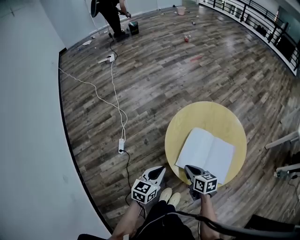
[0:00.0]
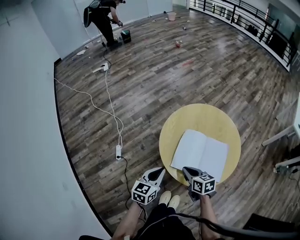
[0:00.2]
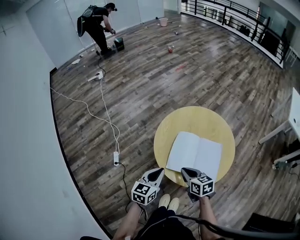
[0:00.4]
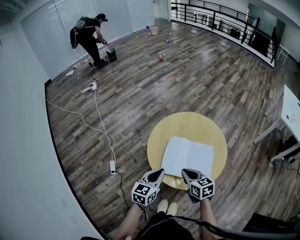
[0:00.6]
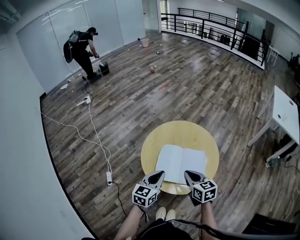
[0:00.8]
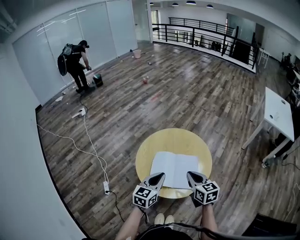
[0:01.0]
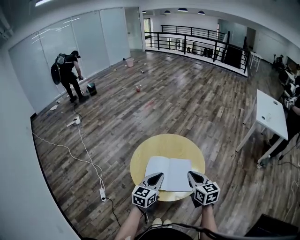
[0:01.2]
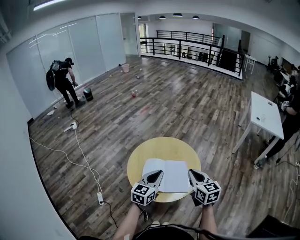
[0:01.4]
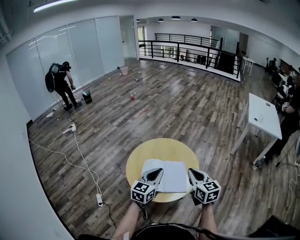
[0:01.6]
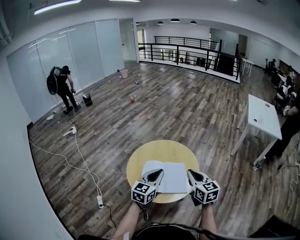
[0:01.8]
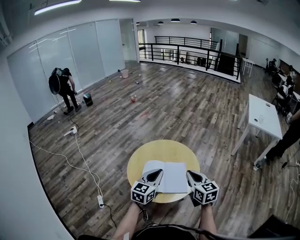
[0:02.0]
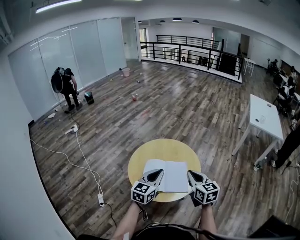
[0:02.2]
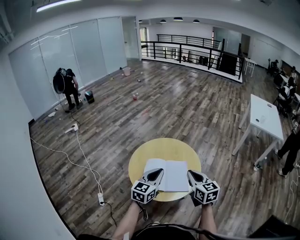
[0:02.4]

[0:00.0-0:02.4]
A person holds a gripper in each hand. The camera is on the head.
0:00.0 to 0:01.2: The left gripper shifts by roughly 25 cm, and rotates approximately 20 degrees; the right gripper shifts by roughly 30 cm, and turns by approximately 40 degrees.
0:01.2 to 0:02.4: The grippers move only a little.

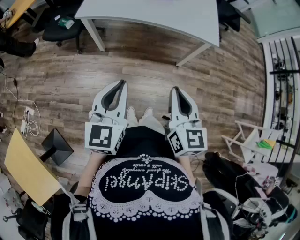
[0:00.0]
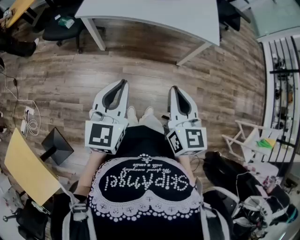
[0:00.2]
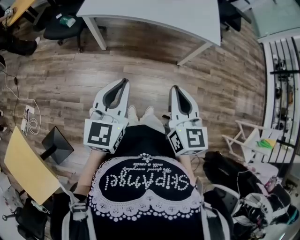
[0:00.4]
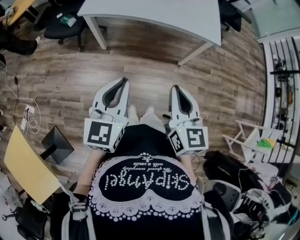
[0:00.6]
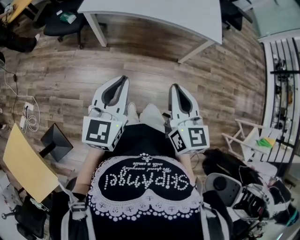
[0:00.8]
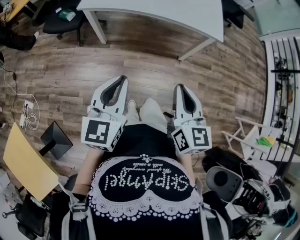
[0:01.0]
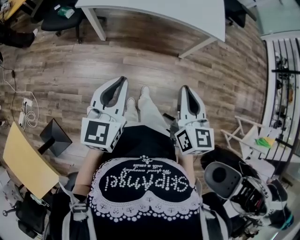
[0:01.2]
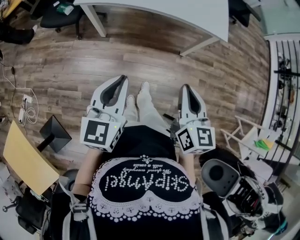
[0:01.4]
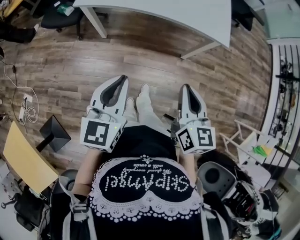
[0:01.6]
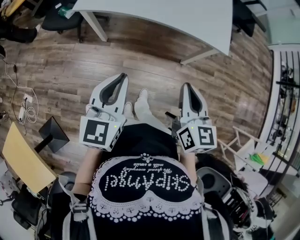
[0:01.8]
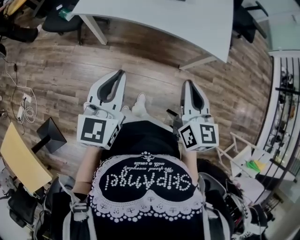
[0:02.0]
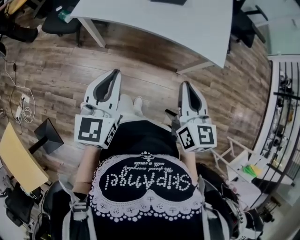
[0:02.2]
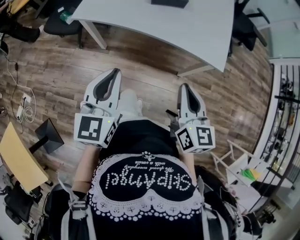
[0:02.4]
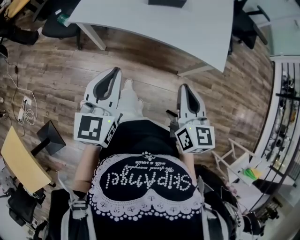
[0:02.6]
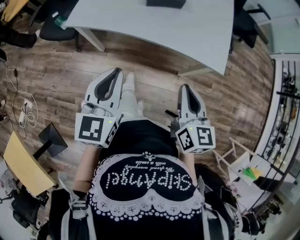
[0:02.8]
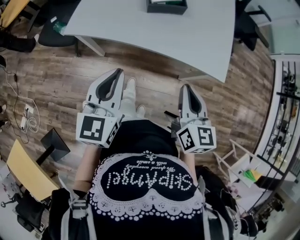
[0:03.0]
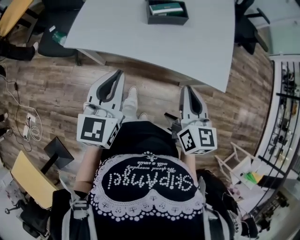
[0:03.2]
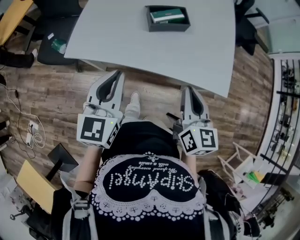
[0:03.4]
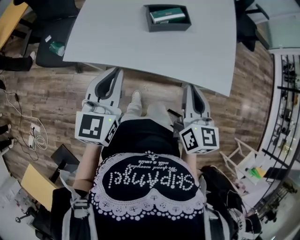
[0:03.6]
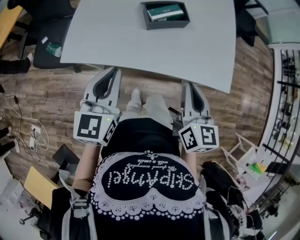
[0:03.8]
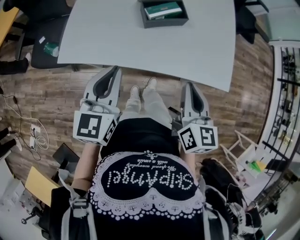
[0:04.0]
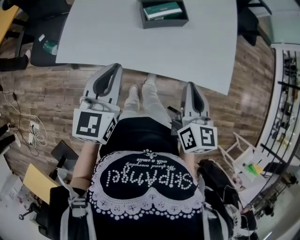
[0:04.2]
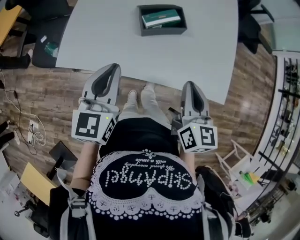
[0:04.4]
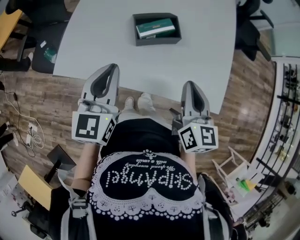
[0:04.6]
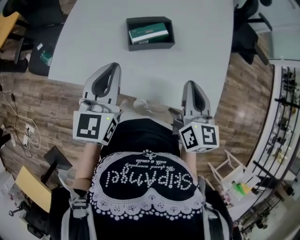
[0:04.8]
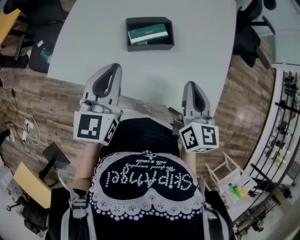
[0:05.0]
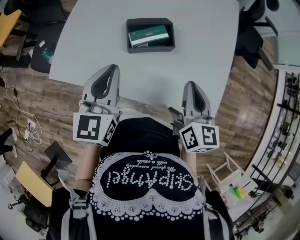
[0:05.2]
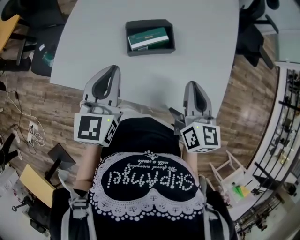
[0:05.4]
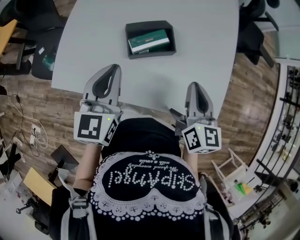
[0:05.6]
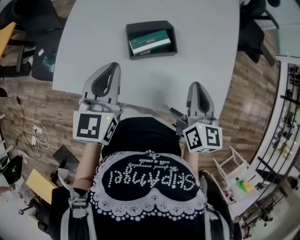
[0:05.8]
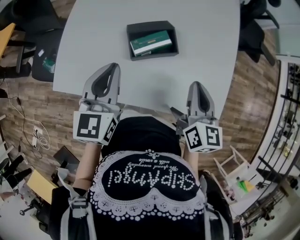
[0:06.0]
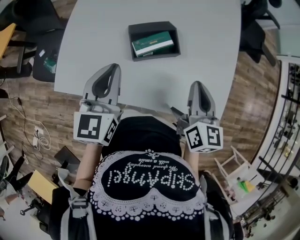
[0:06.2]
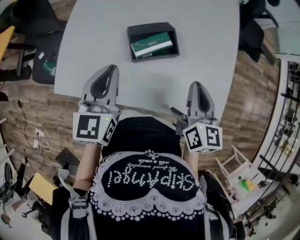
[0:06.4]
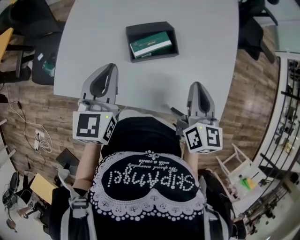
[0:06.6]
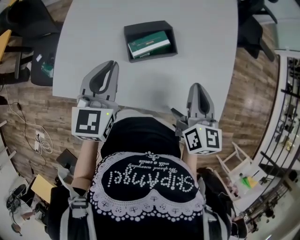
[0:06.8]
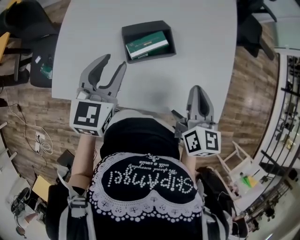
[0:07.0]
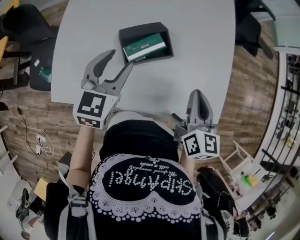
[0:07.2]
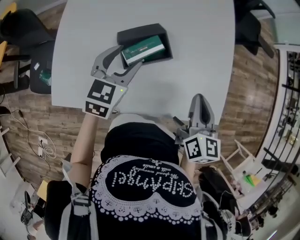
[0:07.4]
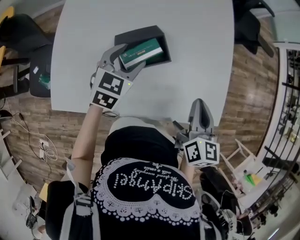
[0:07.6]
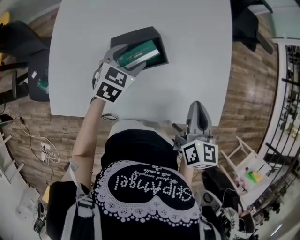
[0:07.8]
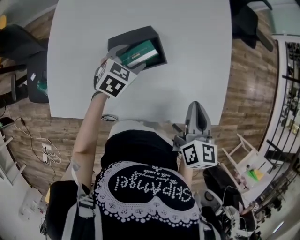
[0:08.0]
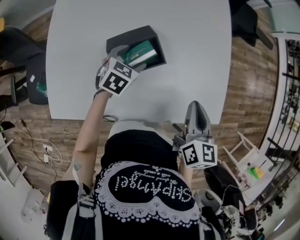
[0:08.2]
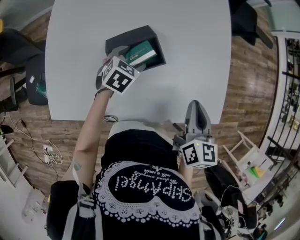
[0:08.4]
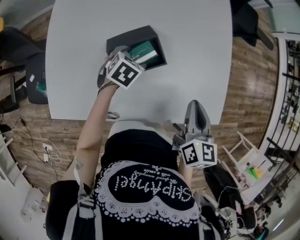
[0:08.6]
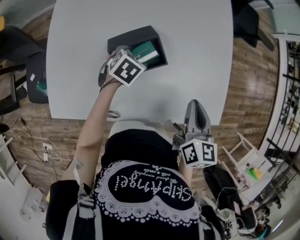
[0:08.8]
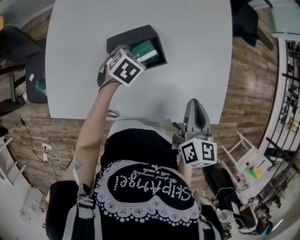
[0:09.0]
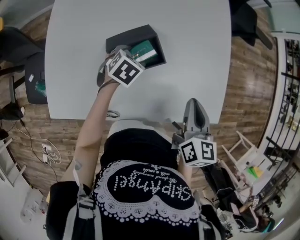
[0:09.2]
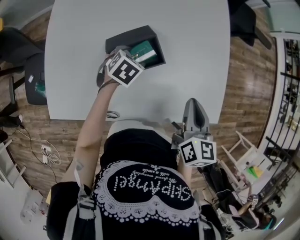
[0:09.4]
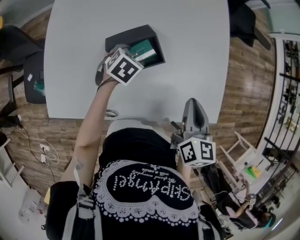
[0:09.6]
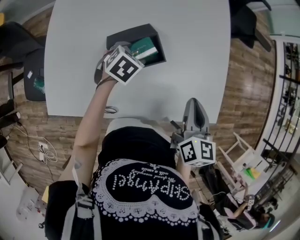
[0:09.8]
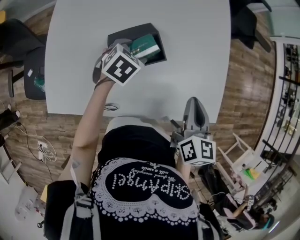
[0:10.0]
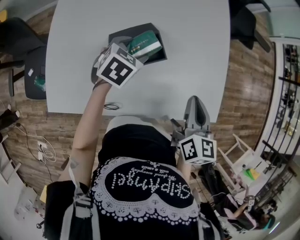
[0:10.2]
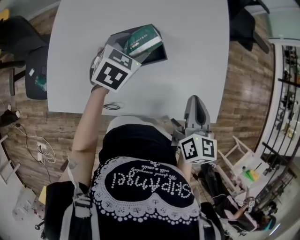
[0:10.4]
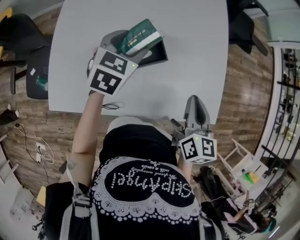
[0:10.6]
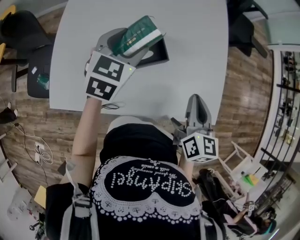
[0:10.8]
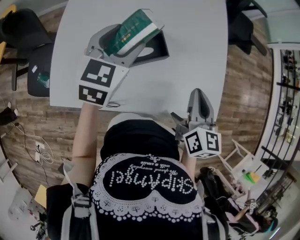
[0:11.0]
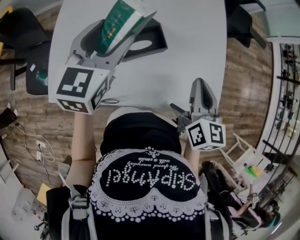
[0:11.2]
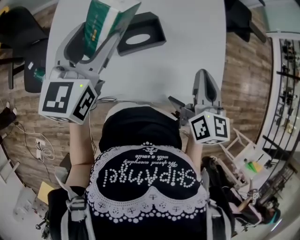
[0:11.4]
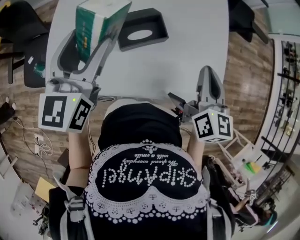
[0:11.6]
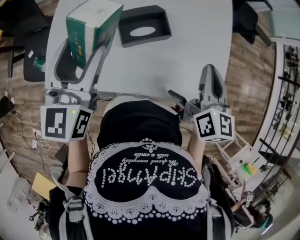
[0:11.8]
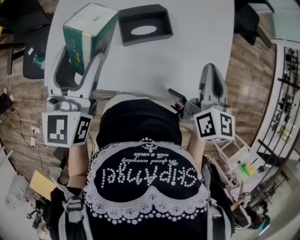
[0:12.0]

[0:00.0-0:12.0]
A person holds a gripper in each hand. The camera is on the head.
0:00.0 to 0:01.6: The two grippers go roughly 5 cm forward.
0:01.6 to 0:03.0: The grippers both shift forward by some 20 cm.
0:03.0 to 0:04.4: Both grippers travel together forward, about 20 cm.
0:04.4 to 0:06.0: The grippers both shift forward by roughly 15 cm.
0:06.0 to 0:07.6: The left gripper travels forward, downward and to the right by approximately 15 cm, rotates approximately 30 degrees, and opens up, while the right gripper ends up roughly 5 cm from where it was.
0:07.6 to 0:09.0: The left gripper is displaced downward by approximately 15 cm, and turns by roughly 30 degrees.
0:09.0 to 0:10.4: The left gripper heads upward, covering roughly 10 cm.
0:10.4 to 0:12.0: The right gripper moves upward, approximately 5 cm; the left gripper shifts about 25 cm upward, backward and to the left, and tilts its fingers roughly 40 degrees upward.

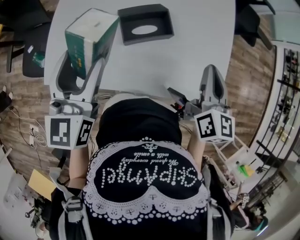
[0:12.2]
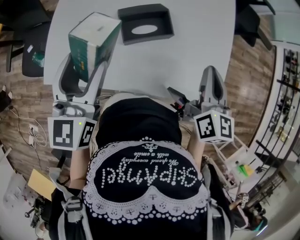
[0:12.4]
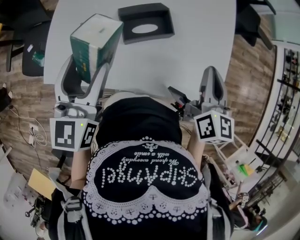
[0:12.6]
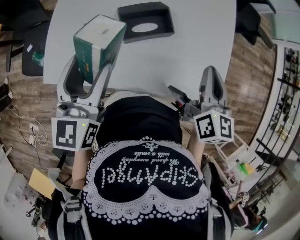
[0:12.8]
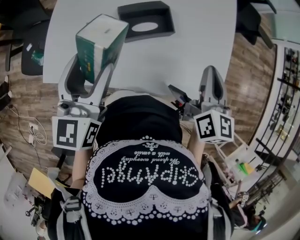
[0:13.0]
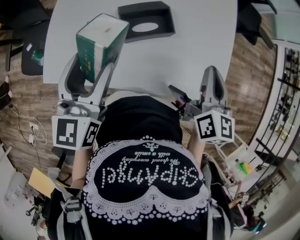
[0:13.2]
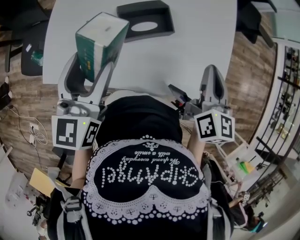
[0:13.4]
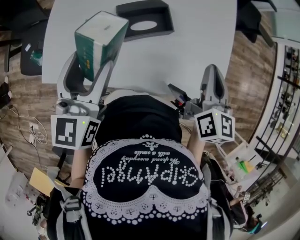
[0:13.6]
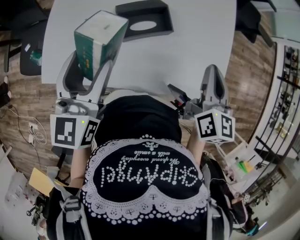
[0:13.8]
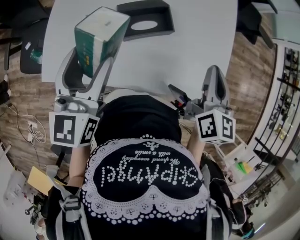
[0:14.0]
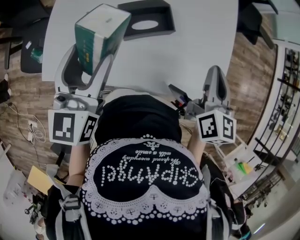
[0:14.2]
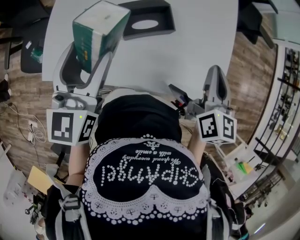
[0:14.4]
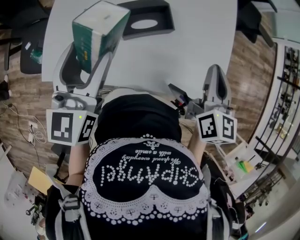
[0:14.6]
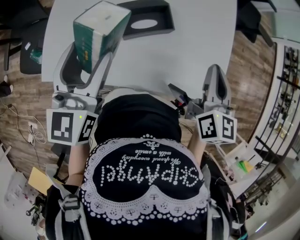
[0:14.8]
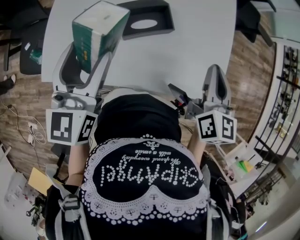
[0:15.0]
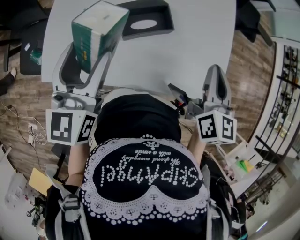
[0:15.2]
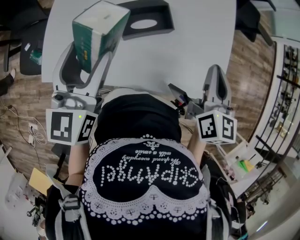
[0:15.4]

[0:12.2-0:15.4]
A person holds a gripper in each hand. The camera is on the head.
0:12.2 to 0:15.4: The grippers move only a little.

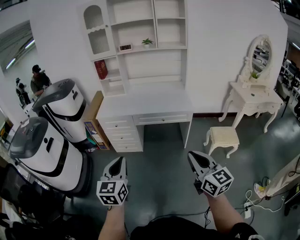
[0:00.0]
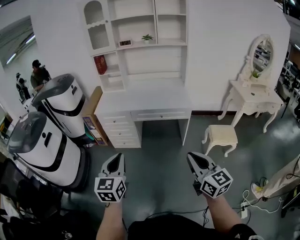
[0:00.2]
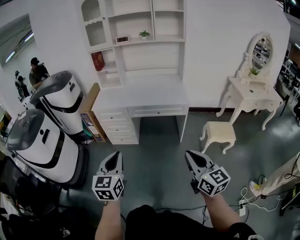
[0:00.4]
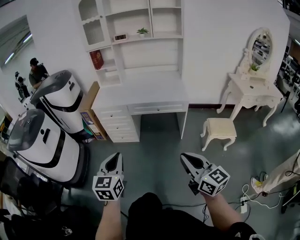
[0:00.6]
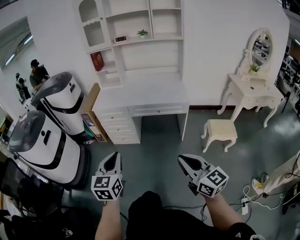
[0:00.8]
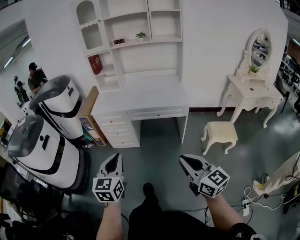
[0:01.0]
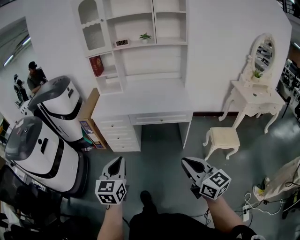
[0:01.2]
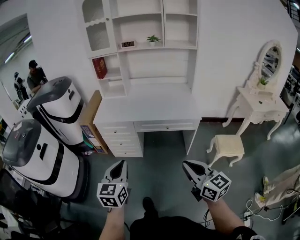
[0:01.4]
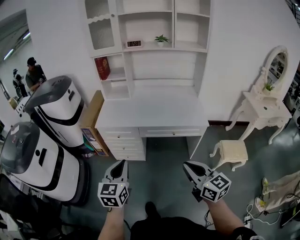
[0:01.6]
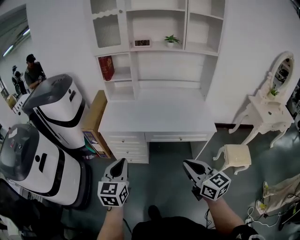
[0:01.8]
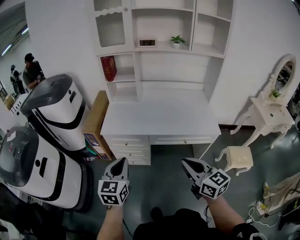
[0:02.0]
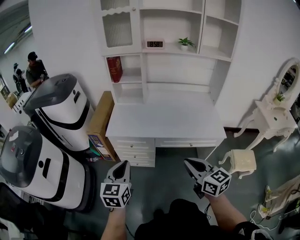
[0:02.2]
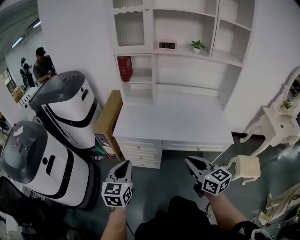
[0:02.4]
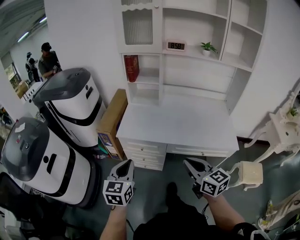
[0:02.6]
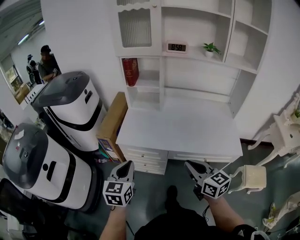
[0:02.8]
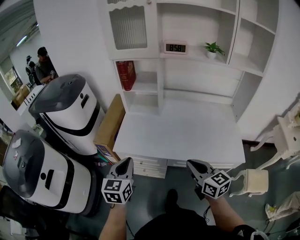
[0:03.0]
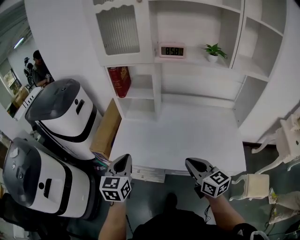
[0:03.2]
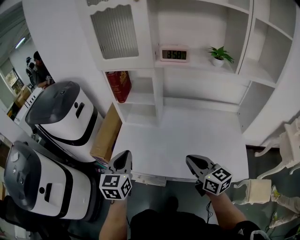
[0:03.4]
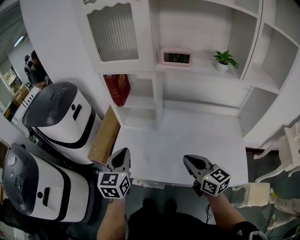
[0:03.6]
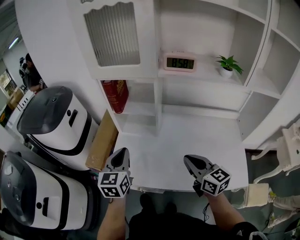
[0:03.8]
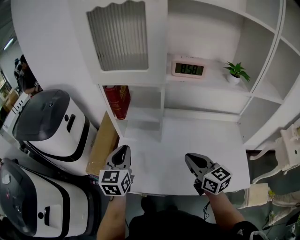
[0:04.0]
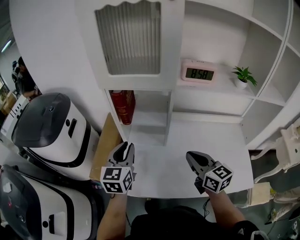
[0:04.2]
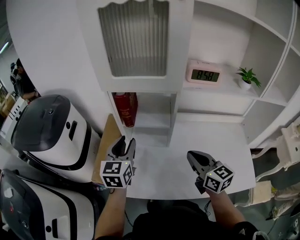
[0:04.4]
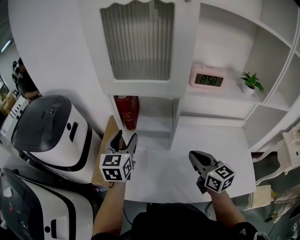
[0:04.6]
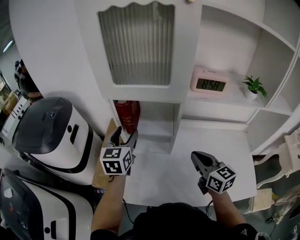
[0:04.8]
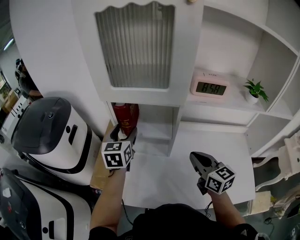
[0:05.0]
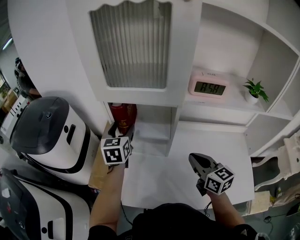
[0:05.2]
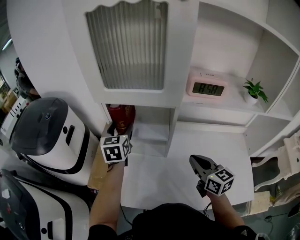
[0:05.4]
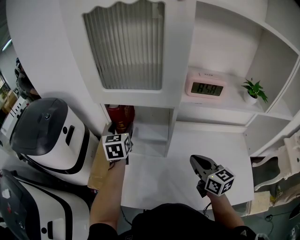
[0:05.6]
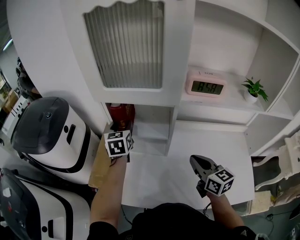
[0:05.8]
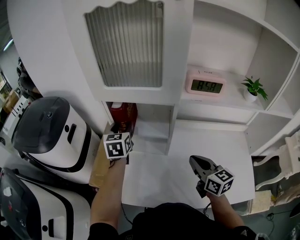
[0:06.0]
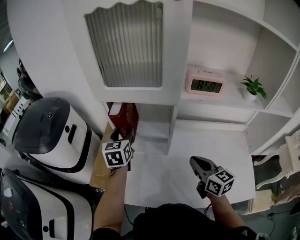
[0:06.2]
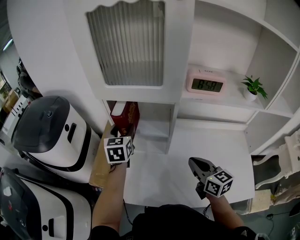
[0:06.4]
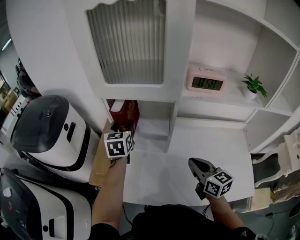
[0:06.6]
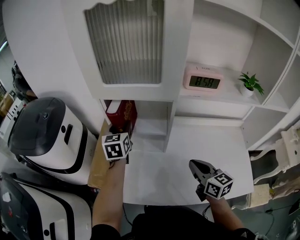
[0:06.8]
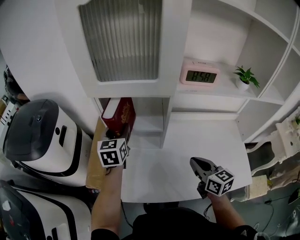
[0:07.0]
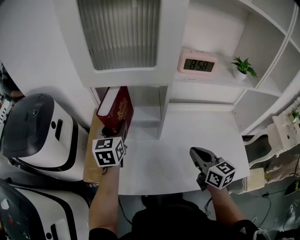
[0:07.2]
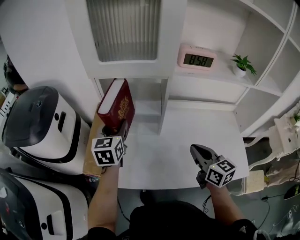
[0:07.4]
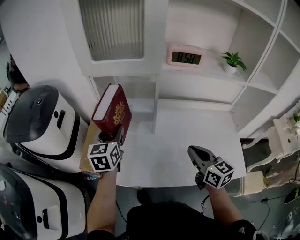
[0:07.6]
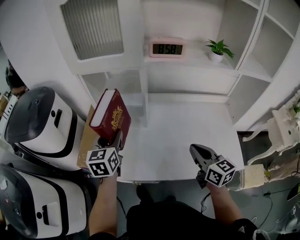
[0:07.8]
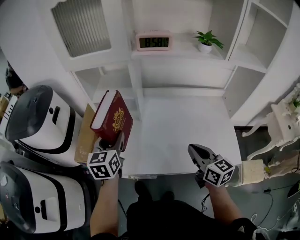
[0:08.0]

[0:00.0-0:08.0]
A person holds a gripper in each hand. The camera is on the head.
0:00.0 to 0:01.6: Both grippers travel together forward, about 25 cm.
0:01.6 to 0:03.2: The pair of grippers is taken forward, roughly 40 cm.
0:03.2 to 0:04.8: The two grippers go roughly 35 cm forward. The left gripper opens its fingers.
0:06.4 to 0:08.0: The right gripper heads backward and to the right, covering approximately 20 cm. The left gripper shifts about 25 cm backward.
